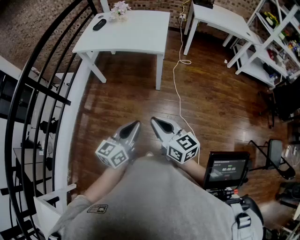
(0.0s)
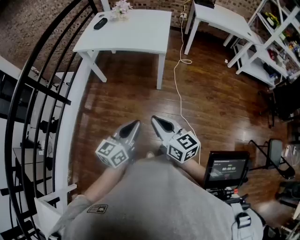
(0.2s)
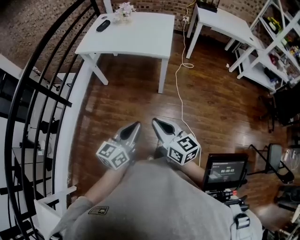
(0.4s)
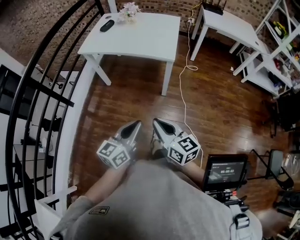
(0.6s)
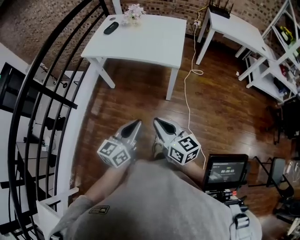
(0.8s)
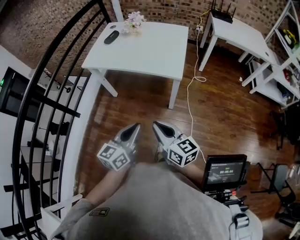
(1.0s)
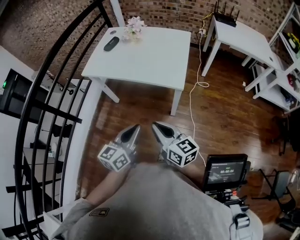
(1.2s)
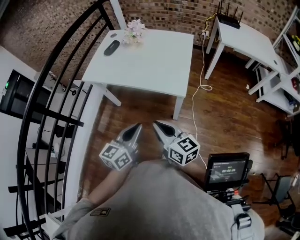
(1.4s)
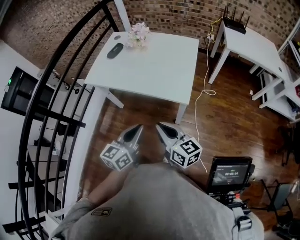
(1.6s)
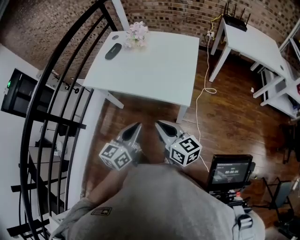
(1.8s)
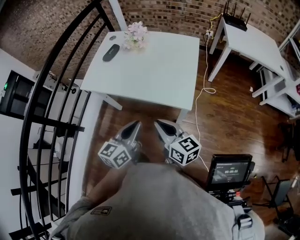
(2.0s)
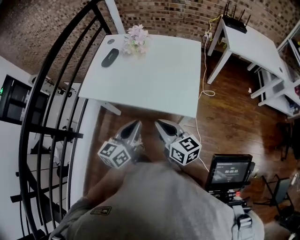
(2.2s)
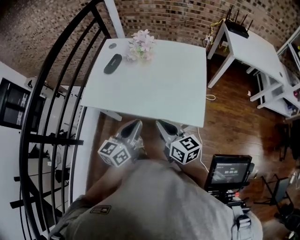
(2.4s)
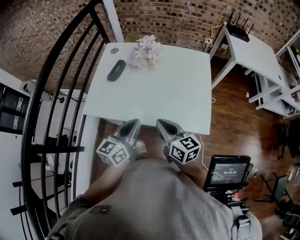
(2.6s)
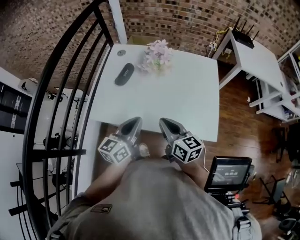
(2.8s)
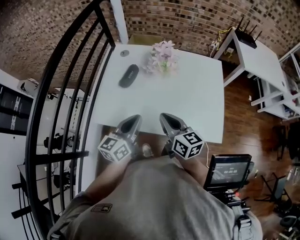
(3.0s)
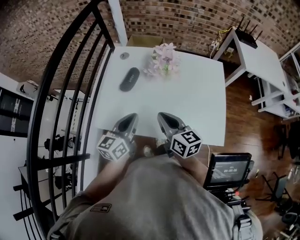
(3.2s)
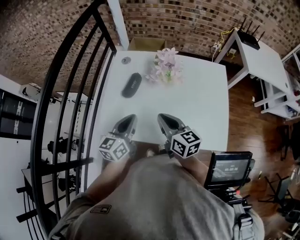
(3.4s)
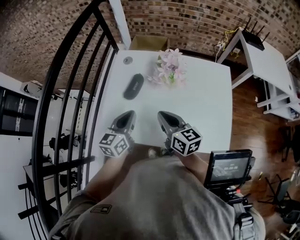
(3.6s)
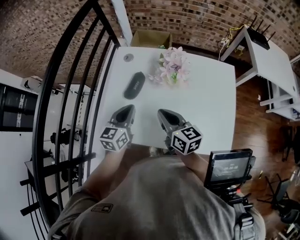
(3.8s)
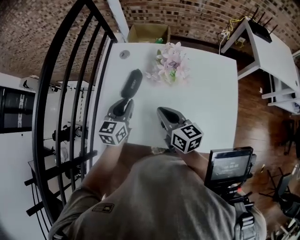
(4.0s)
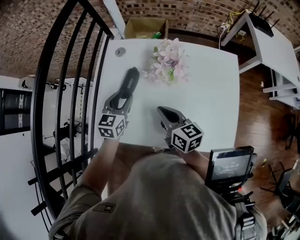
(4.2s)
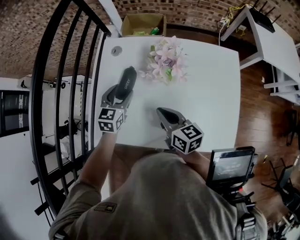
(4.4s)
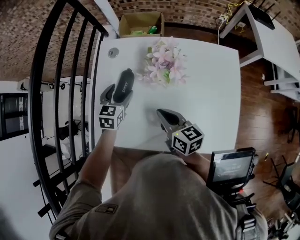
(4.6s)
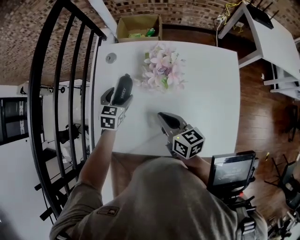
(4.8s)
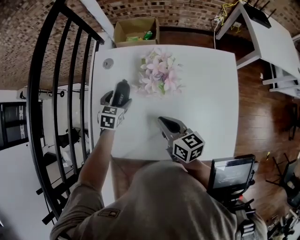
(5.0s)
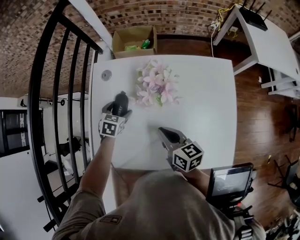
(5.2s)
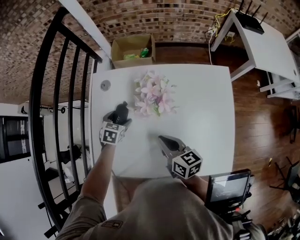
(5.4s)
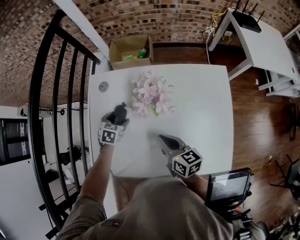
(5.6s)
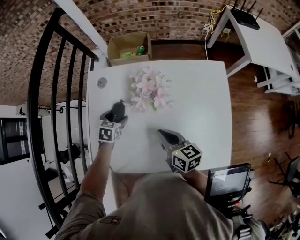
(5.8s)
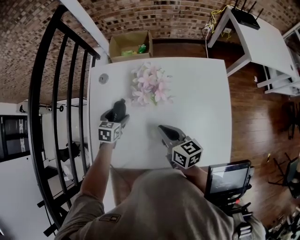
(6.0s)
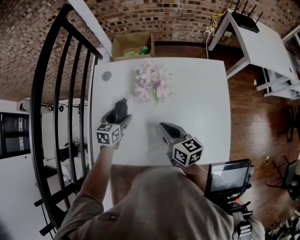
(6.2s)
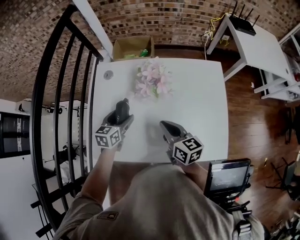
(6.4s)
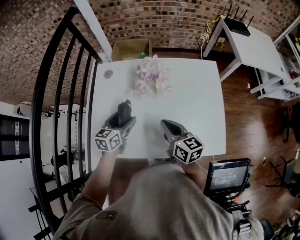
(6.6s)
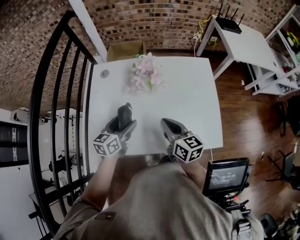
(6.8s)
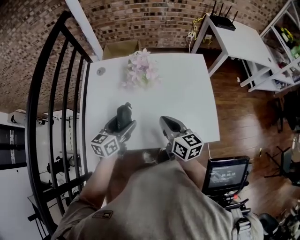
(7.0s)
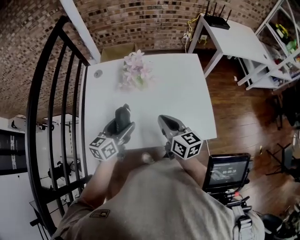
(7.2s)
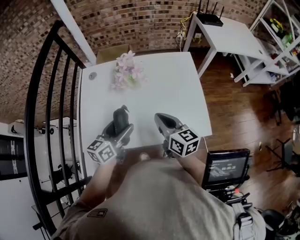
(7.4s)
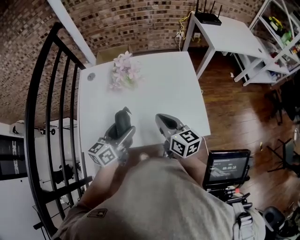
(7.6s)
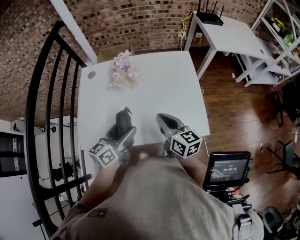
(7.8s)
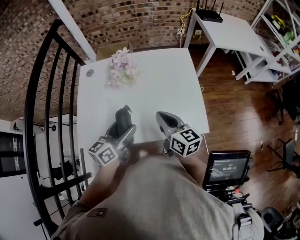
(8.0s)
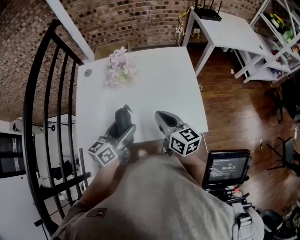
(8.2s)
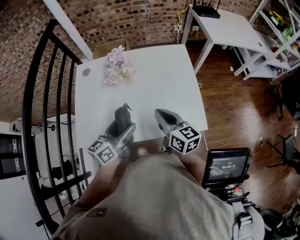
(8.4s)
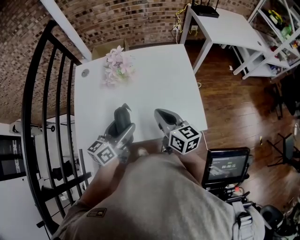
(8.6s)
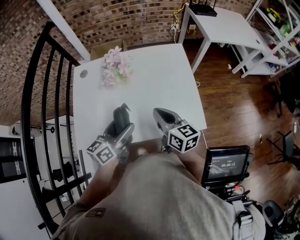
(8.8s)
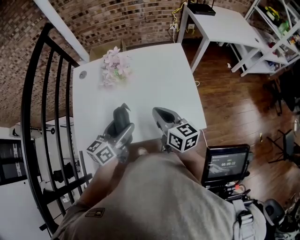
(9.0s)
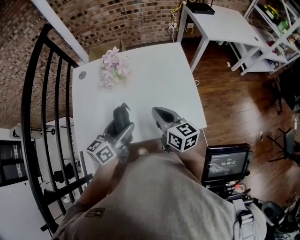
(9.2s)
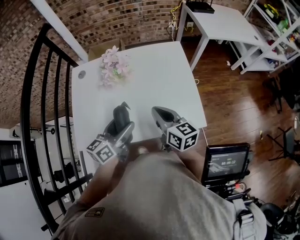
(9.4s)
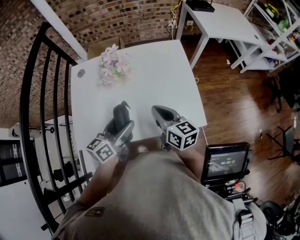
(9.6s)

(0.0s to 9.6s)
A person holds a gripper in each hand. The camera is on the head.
0.0s - 1.6s: The grippers both shift forward by about 35 cm.
1.6s - 3.2s: The two grippers travel together, forward and to the left, about 40 cm.
3.2s - 4.8s: The left gripper shifts some 30 cm forward and downward, tips its fingers downward by about 40 degrees, and opens; the right gripper moves forward and downward, approximately 15 cm.
4.8s - 6.4s: The right gripper moves approximately 5 cm; the left gripper moves backward, some 5 cm, and changes its angle by some 20 degrees.
6.4s - 8.0s: The right gripper heads to the right, backward and upward, covering about 15 cm, while the left gripper shifts about 25 cm backward, to the right and upward, and turns by about 30 degrees.
8.0s - 9.6s: The grippers stay close to where they were, moving slightly.

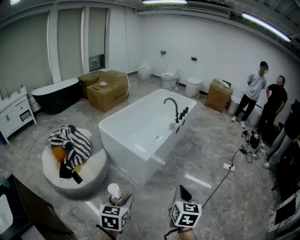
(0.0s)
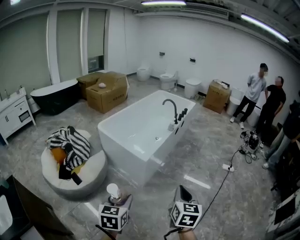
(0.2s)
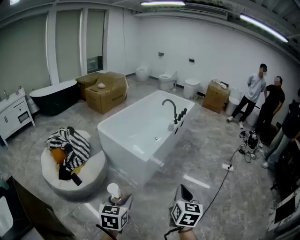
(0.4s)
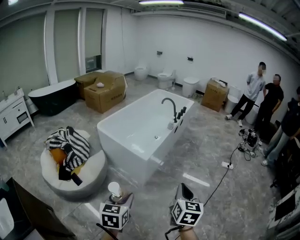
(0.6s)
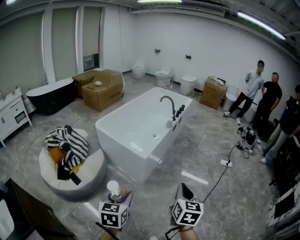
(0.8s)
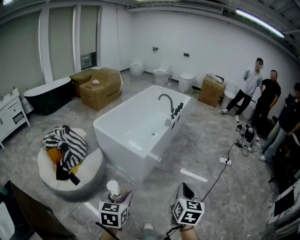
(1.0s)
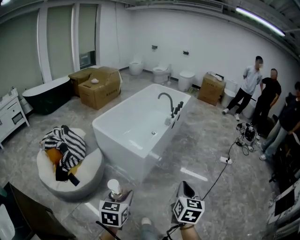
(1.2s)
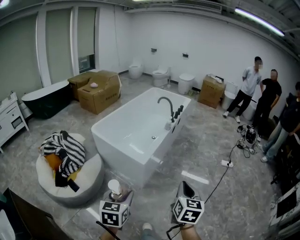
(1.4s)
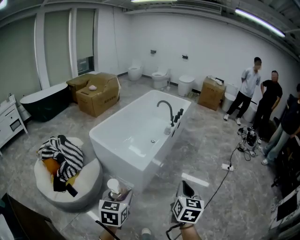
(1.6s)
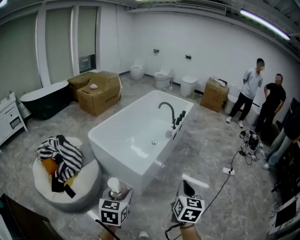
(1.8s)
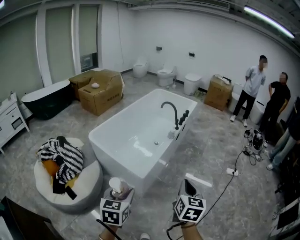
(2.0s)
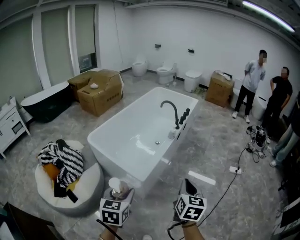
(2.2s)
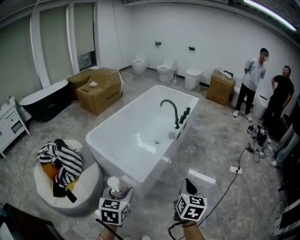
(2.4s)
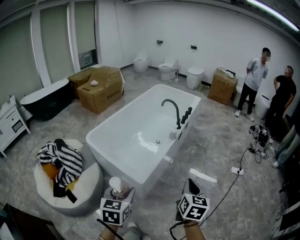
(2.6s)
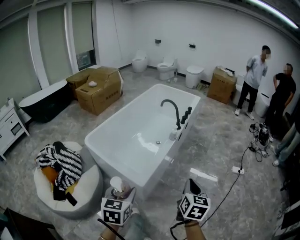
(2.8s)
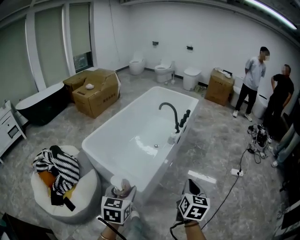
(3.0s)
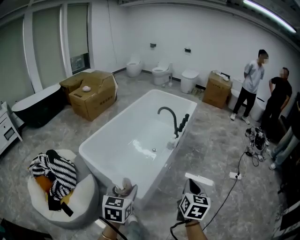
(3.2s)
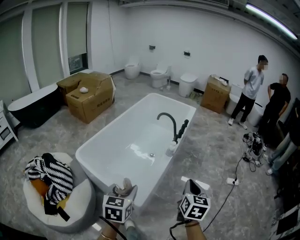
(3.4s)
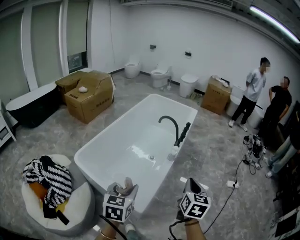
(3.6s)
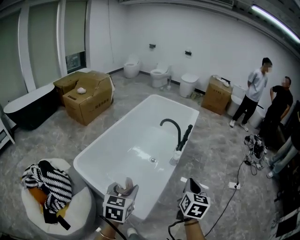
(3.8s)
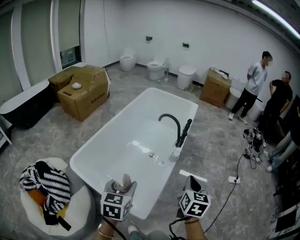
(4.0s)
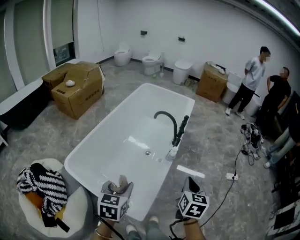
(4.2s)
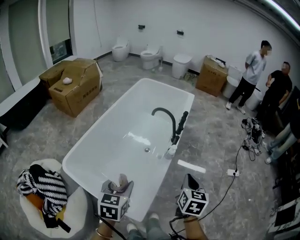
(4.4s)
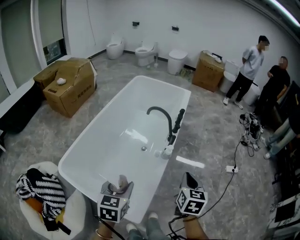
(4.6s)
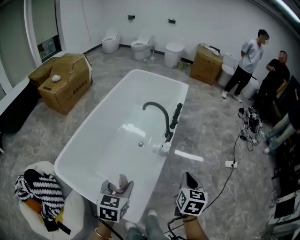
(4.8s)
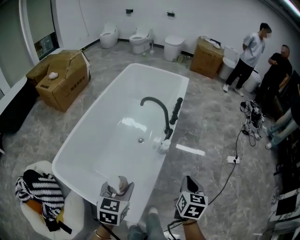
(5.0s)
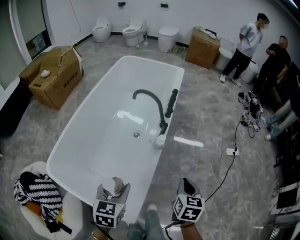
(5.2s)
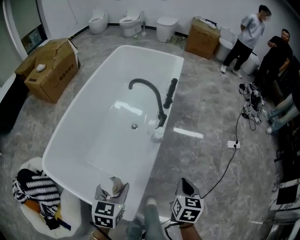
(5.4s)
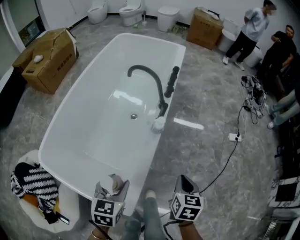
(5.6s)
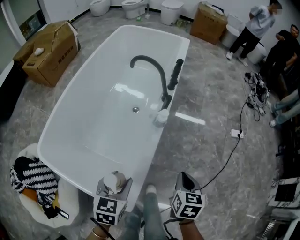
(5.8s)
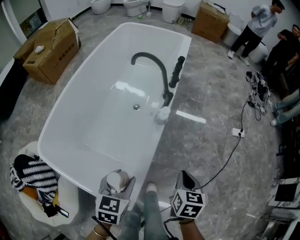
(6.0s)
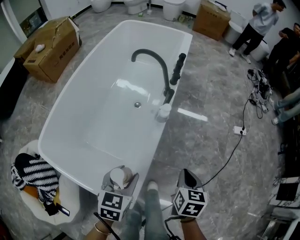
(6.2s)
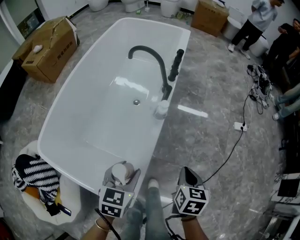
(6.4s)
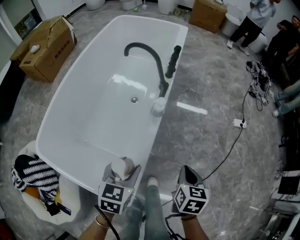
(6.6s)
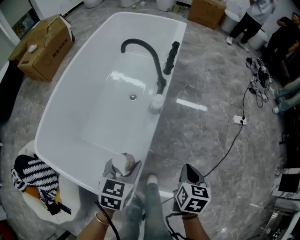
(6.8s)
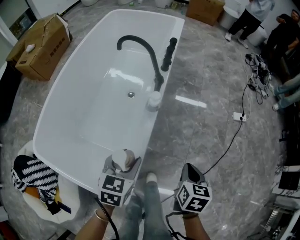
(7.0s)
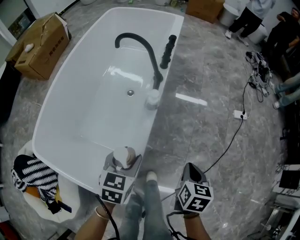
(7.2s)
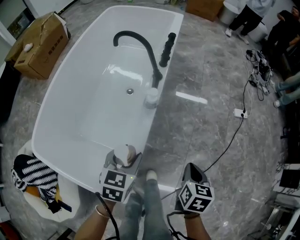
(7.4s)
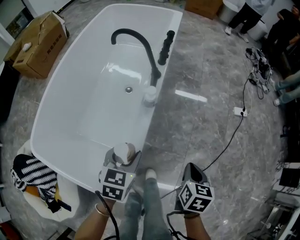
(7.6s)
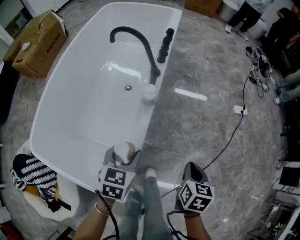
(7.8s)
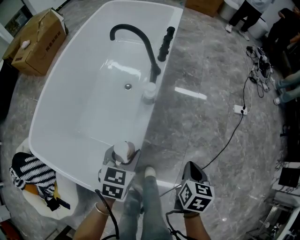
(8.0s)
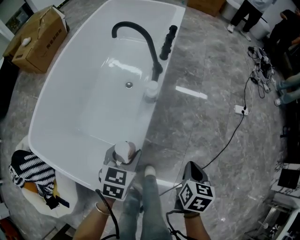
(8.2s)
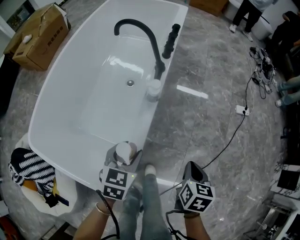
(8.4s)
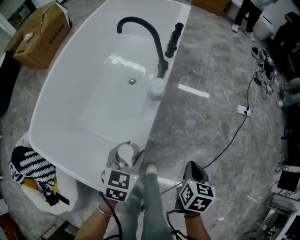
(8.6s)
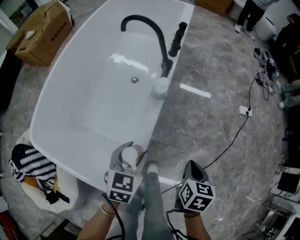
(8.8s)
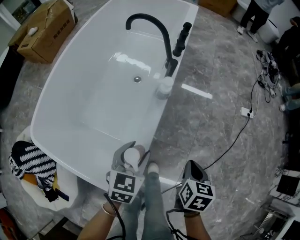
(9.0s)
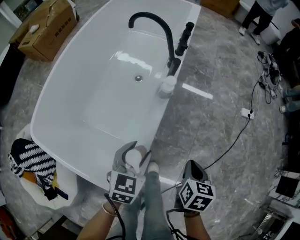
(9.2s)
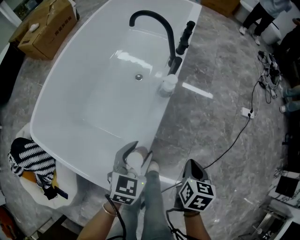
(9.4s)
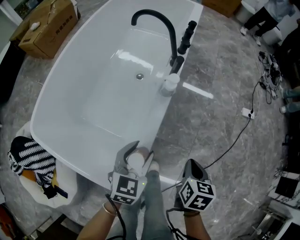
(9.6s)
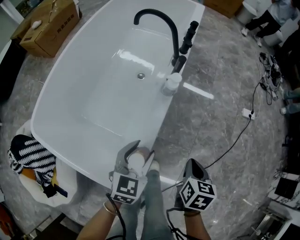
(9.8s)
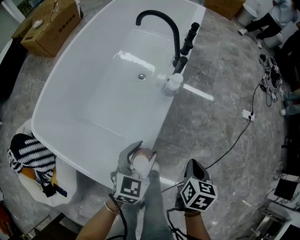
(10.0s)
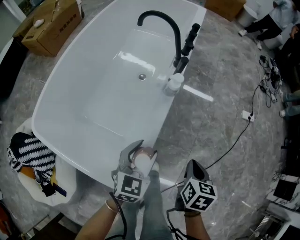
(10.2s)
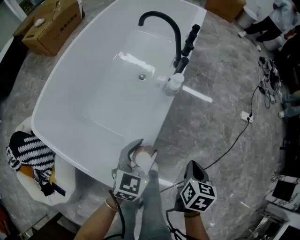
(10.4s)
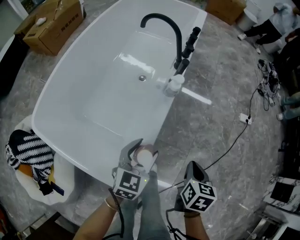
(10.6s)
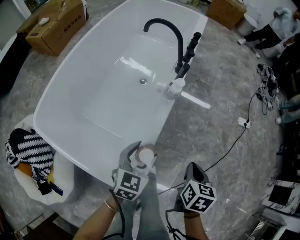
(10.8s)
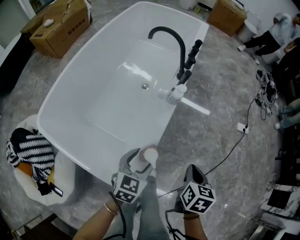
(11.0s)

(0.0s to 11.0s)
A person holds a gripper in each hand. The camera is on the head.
0.0s - 1.6s: The two grippers go approximately 10 cm forward.
1.6s - 3.2s: The grippers both shift forward by some 30 cm.
3.2s - 4.8s: Both grippers move forward, some 25 cm.
4.8s - 6.2s: The left gripper goes some 15 cm downward and to the right; the right gripper goes roughly 15 cm downward.
6.2s - 7.8s: The right gripper shifts about 10 cm to the right. Meanwhile the left gripper shifts some 5 cm forward.
7.8s - 9.4s: The right gripper changes place by some 5 cm.
9.4s - 11.0s: The right gripper changes place by approximately 5 cm, while the left gripper moves backward, approximately 5 cm.

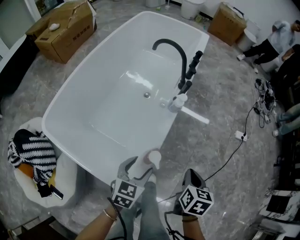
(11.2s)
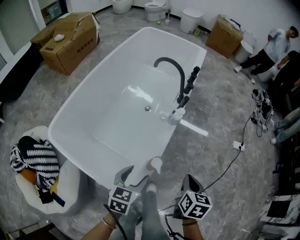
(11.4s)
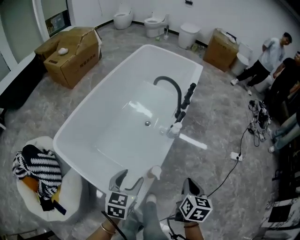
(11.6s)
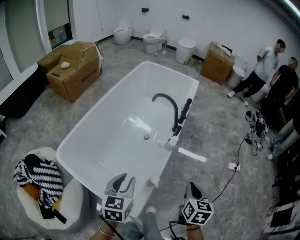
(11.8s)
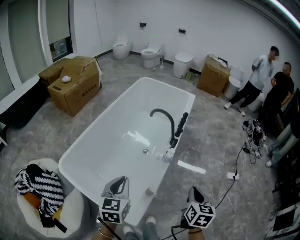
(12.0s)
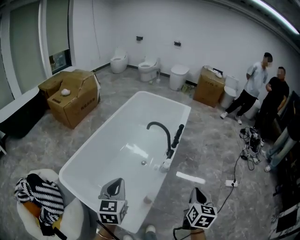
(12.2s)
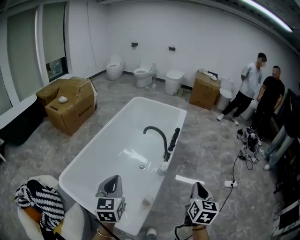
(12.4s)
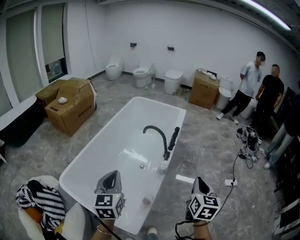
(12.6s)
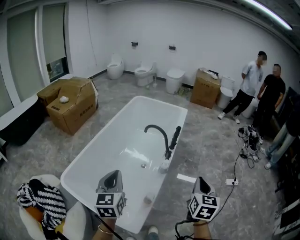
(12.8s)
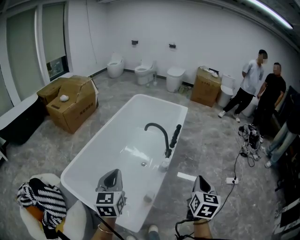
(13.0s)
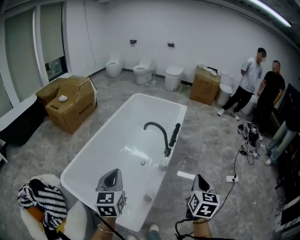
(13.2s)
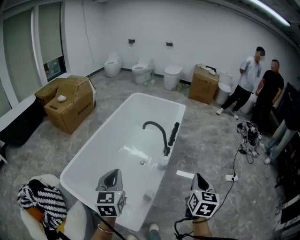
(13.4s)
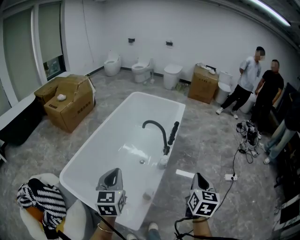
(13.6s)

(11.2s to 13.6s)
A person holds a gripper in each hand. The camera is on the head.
11.2s - 12.4s: The right gripper is displaced upward by approximately 25 cm, and turns by about 30 degrees; the left gripper shifts about 30 cm upward and to the left, changes its angle by about 30 degrees, and closes.
12.4s - 13.6s: The grippers stay close to where they were, moving slightly.

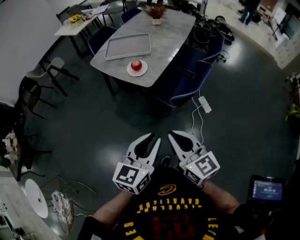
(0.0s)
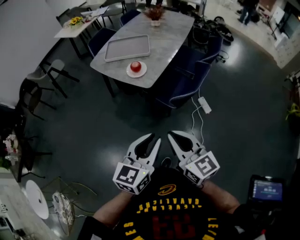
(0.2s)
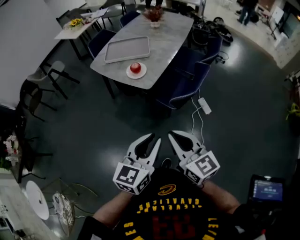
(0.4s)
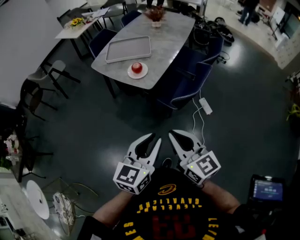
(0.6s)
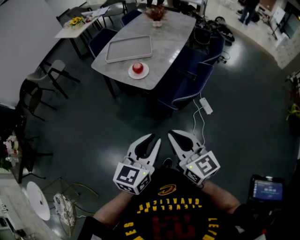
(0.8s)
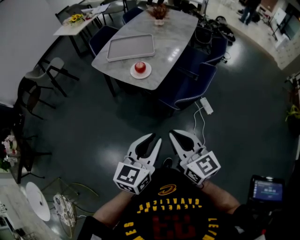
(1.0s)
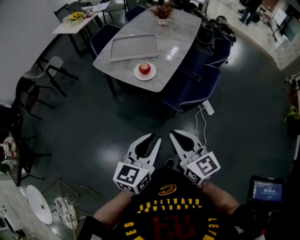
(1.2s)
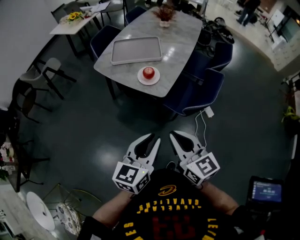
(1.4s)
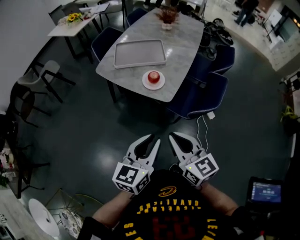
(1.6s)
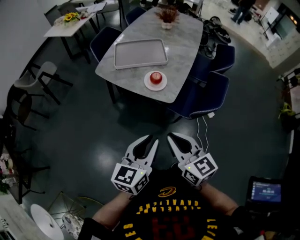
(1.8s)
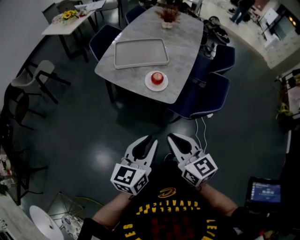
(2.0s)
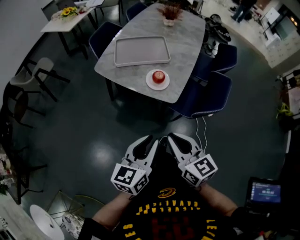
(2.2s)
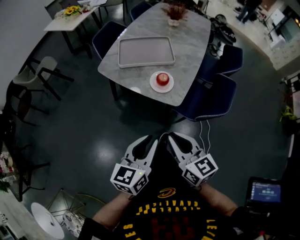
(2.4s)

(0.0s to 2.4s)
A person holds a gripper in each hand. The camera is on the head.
0.0s - 1.2s: The grippers both shift to the left and forward by some 10 cm.
1.2s - 2.4s: The grippers both shift to the left and forward by approximately 20 cm.
